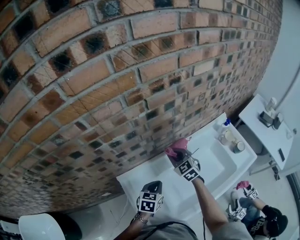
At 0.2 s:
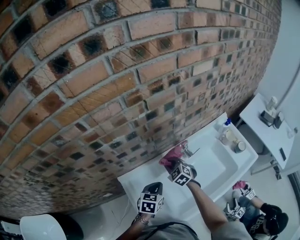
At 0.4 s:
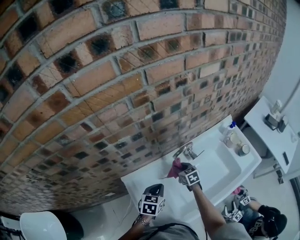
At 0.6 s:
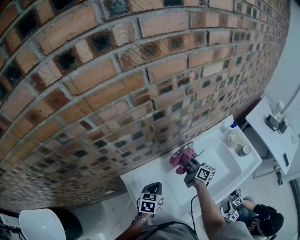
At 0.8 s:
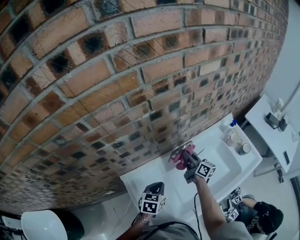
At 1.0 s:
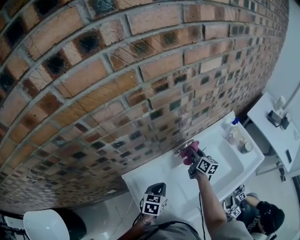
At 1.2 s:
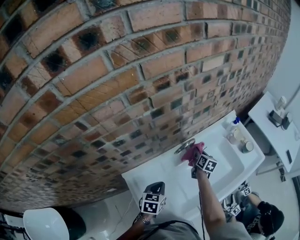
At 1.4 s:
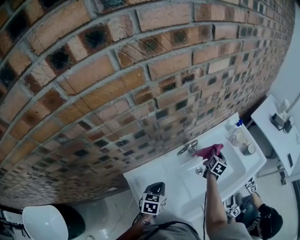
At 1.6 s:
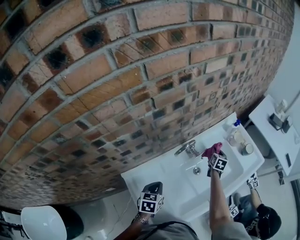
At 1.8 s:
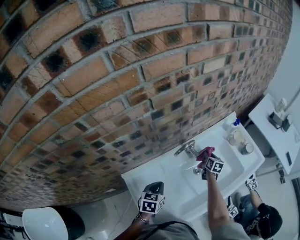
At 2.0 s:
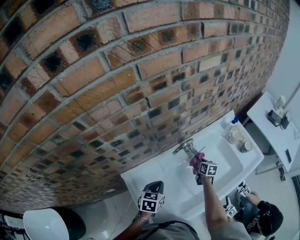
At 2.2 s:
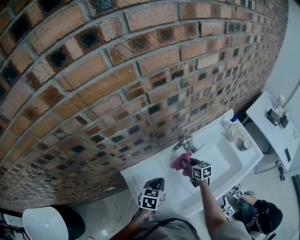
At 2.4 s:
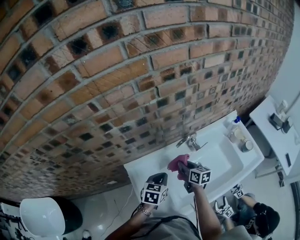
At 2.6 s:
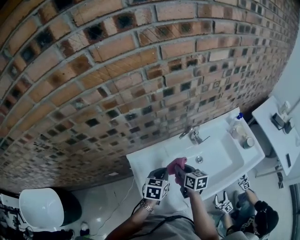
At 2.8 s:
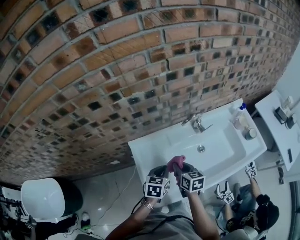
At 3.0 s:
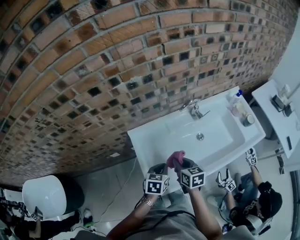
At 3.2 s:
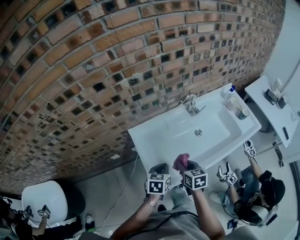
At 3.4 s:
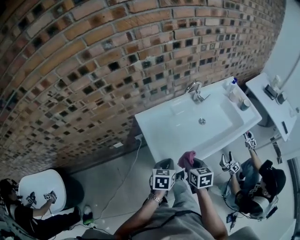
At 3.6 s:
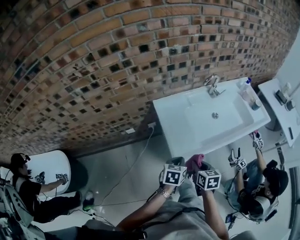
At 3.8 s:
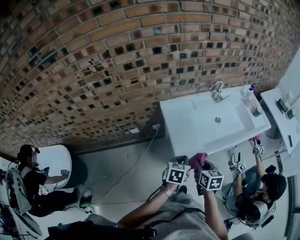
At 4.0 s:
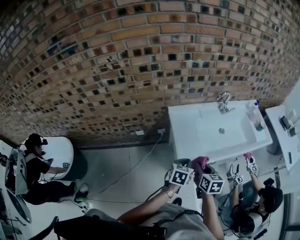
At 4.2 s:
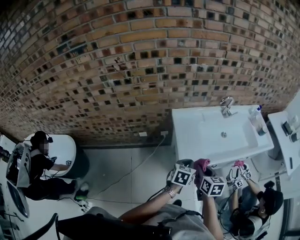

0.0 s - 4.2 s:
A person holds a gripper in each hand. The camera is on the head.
0.0 s - 1.4 s: The right gripper swings up and down, approximately 15 cm each way, with 2 reversals, and rotates roughly 70 degrees.
1.4 s - 2.8 s: The left gripper changes place by some 10 cm. The right gripper ends up roughly 35 cm from where it was, and changes its angle by about 50 degrees.
2.8 s - 4.2 s: The two grippers go roughly 30 cm backward.

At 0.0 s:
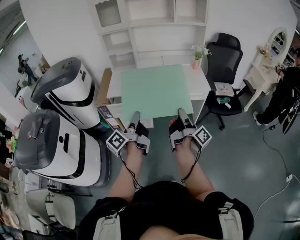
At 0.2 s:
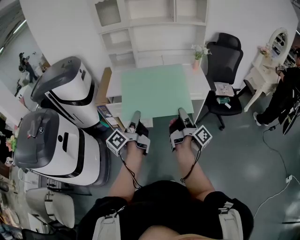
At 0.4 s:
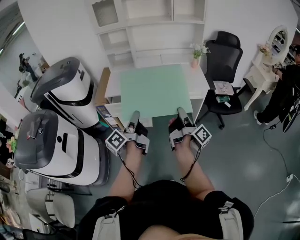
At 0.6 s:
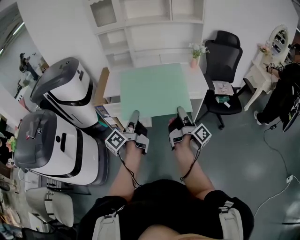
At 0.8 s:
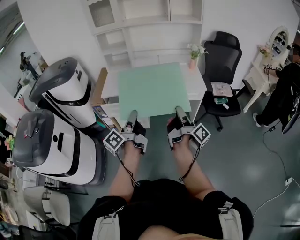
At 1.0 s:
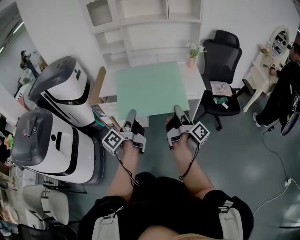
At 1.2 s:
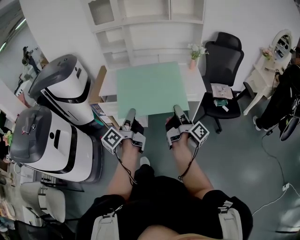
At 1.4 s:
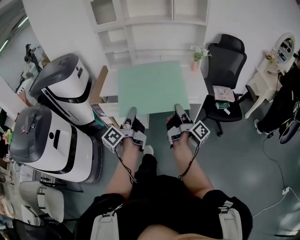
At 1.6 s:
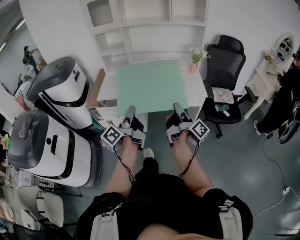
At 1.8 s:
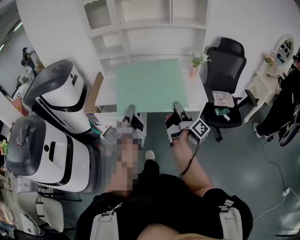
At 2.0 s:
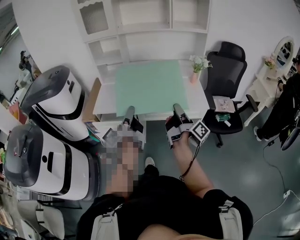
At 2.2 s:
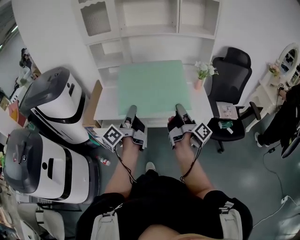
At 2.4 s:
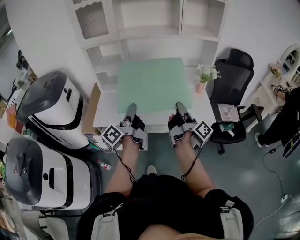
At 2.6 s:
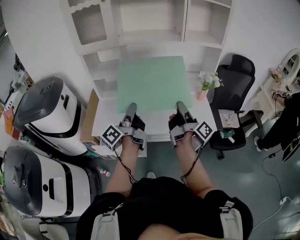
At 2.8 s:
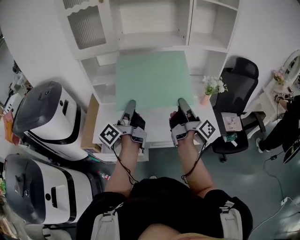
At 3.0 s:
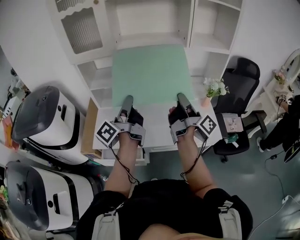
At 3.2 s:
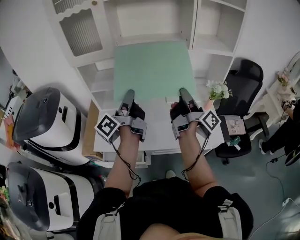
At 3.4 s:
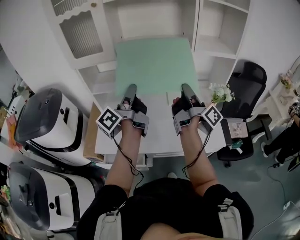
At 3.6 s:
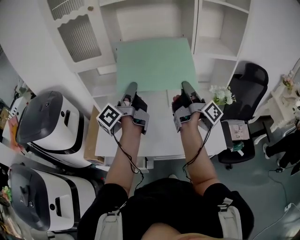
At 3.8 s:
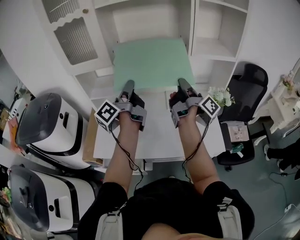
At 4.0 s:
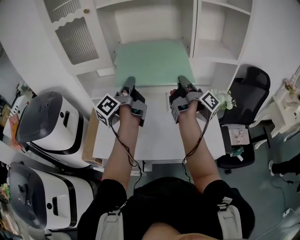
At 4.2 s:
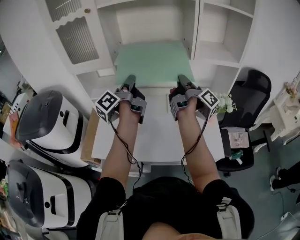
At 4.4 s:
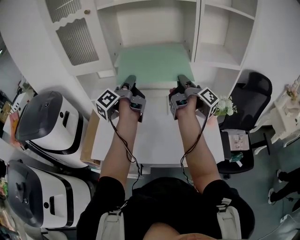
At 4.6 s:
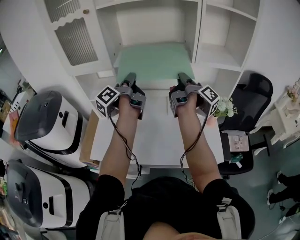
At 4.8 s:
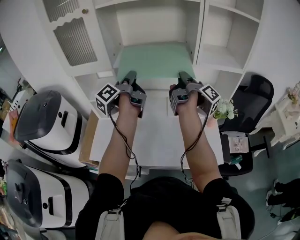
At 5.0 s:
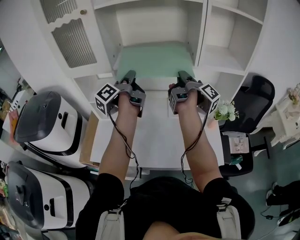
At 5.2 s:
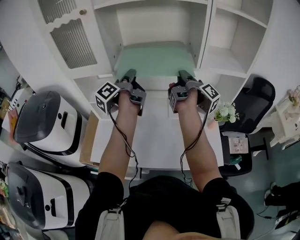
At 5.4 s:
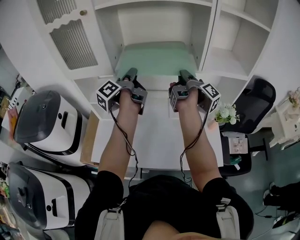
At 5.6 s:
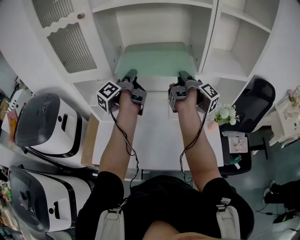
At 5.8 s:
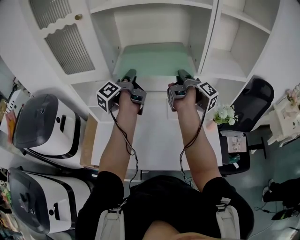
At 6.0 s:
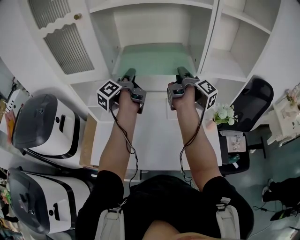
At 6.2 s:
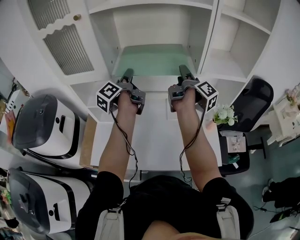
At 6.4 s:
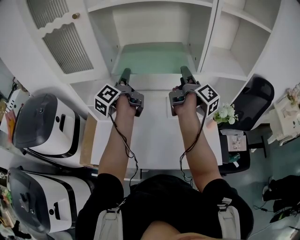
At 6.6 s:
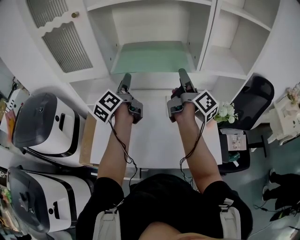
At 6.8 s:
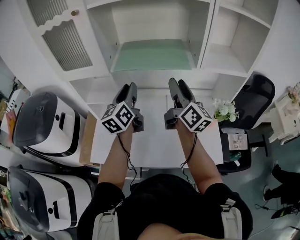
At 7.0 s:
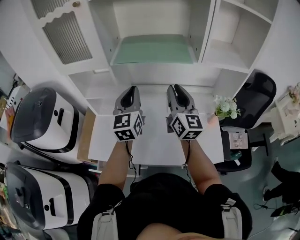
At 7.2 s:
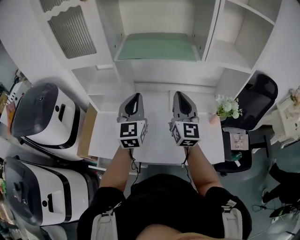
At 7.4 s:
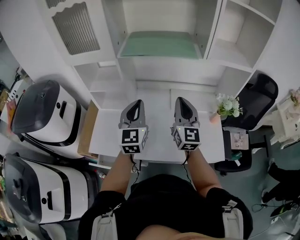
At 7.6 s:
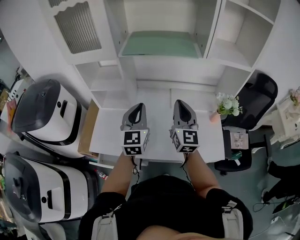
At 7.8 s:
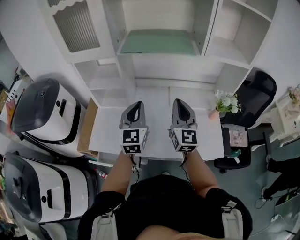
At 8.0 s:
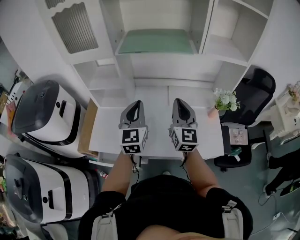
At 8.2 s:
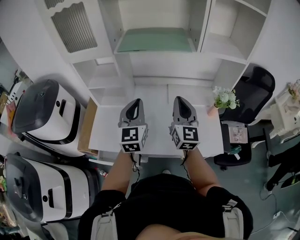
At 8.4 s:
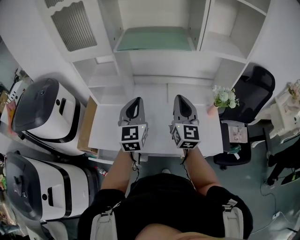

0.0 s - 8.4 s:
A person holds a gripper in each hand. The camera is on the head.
0.0 s - 1.4 s: The left gripper moves approximately 10 cm.
1.4 s - 2.8 s: The left gripper changes place by some 40 cm.
2.8 s - 4.2 s: The left gripper moves about 25 cm.
4.2 s - 5.6 s: The left gripper changes place by some 15 cm.
5.6 s - 7.0 s: The left gripper moves about 10 cm, twists roughly 80 degrees clockwise, seen from behind, and opens, then closes again.
7.0 s - 8.4 s: The left gripper changes place by roughly 10 cm.

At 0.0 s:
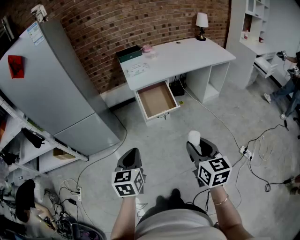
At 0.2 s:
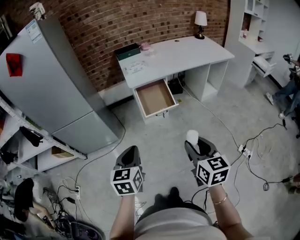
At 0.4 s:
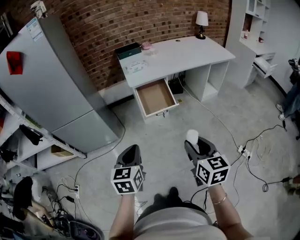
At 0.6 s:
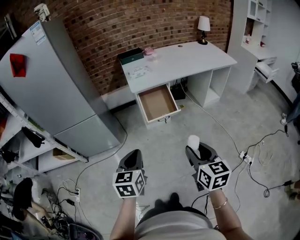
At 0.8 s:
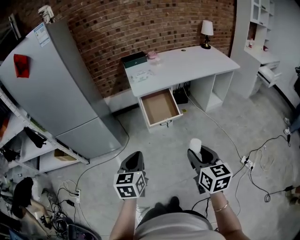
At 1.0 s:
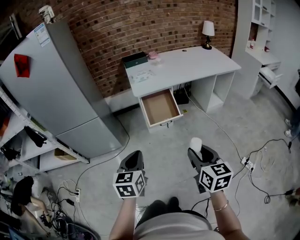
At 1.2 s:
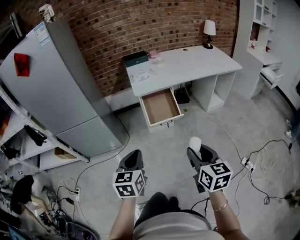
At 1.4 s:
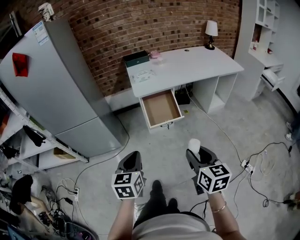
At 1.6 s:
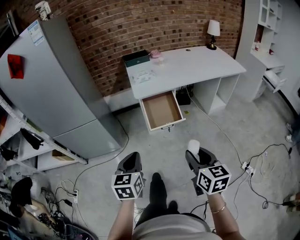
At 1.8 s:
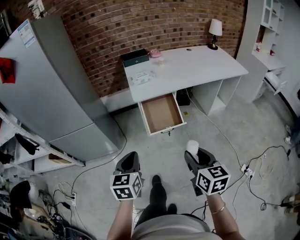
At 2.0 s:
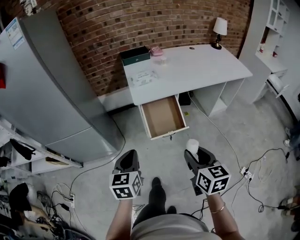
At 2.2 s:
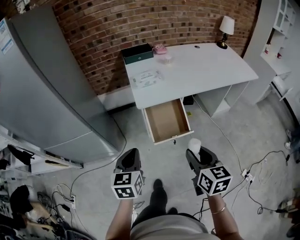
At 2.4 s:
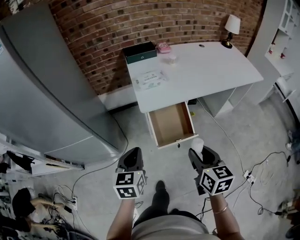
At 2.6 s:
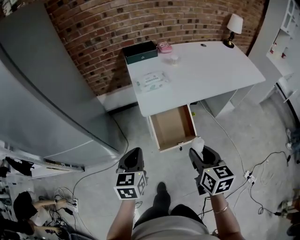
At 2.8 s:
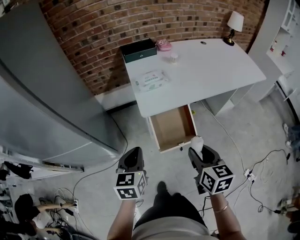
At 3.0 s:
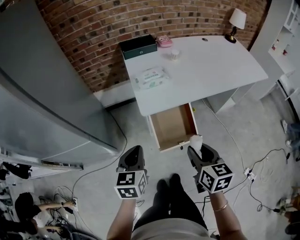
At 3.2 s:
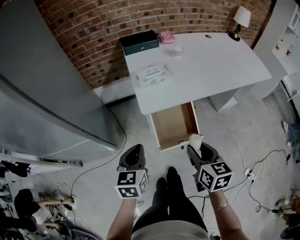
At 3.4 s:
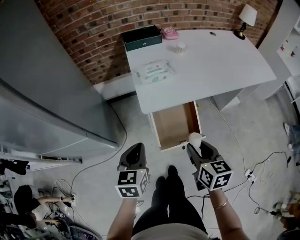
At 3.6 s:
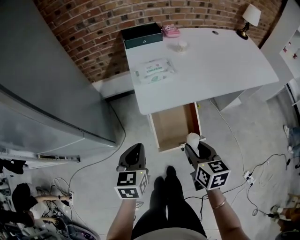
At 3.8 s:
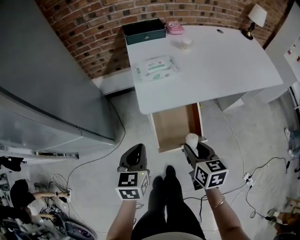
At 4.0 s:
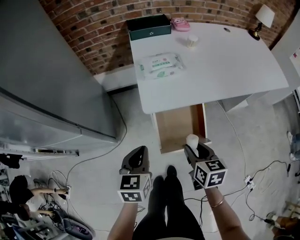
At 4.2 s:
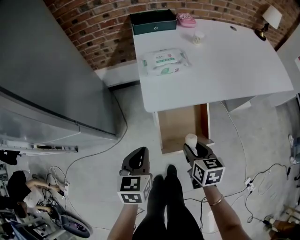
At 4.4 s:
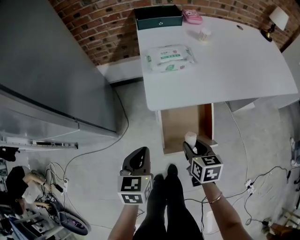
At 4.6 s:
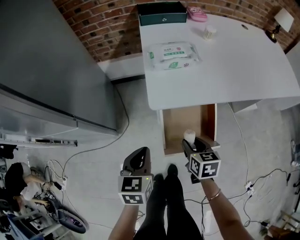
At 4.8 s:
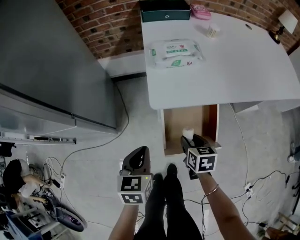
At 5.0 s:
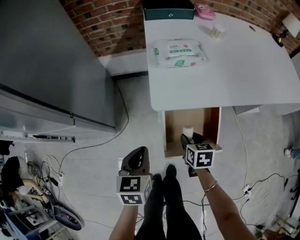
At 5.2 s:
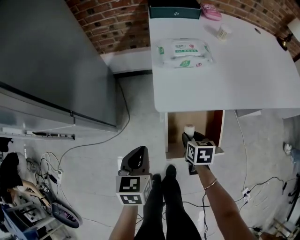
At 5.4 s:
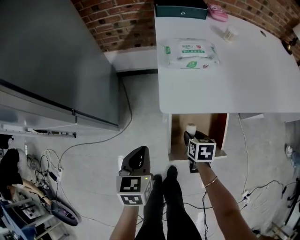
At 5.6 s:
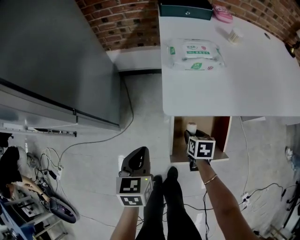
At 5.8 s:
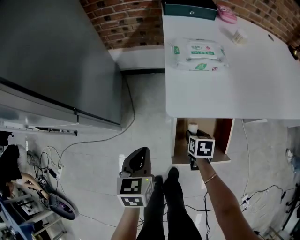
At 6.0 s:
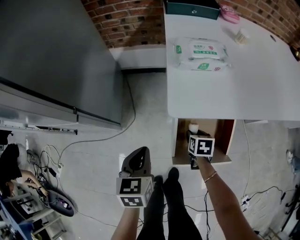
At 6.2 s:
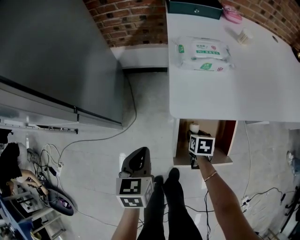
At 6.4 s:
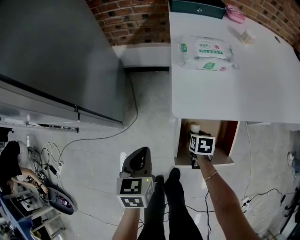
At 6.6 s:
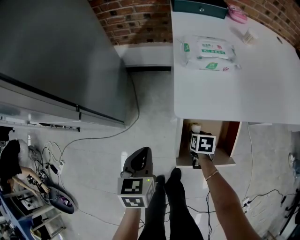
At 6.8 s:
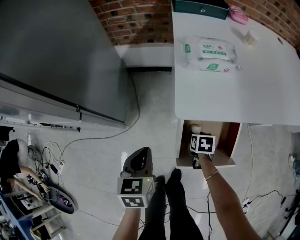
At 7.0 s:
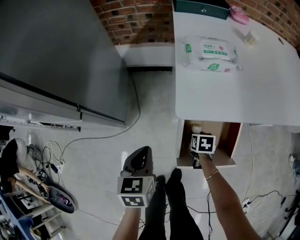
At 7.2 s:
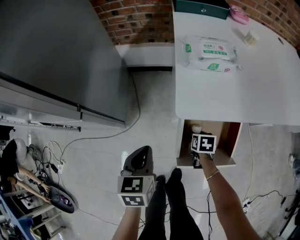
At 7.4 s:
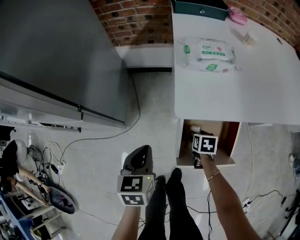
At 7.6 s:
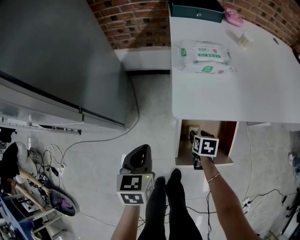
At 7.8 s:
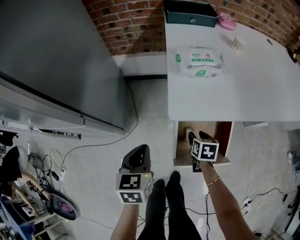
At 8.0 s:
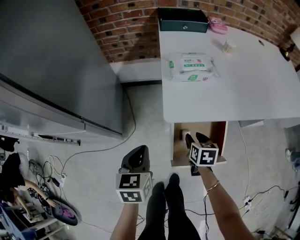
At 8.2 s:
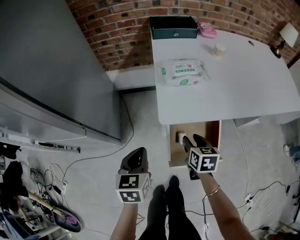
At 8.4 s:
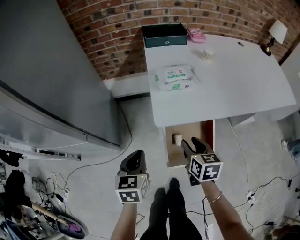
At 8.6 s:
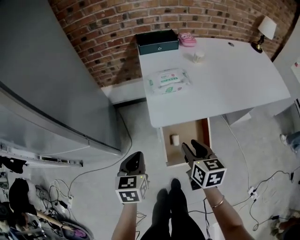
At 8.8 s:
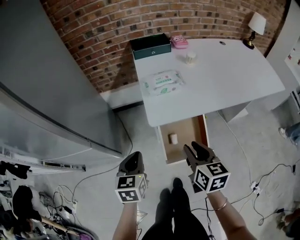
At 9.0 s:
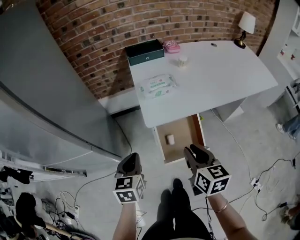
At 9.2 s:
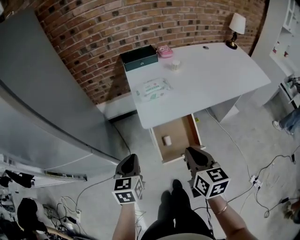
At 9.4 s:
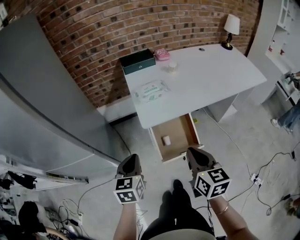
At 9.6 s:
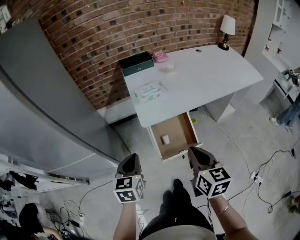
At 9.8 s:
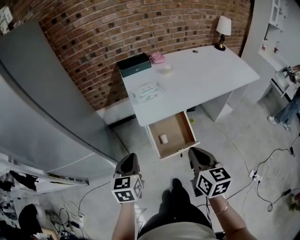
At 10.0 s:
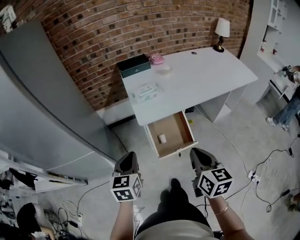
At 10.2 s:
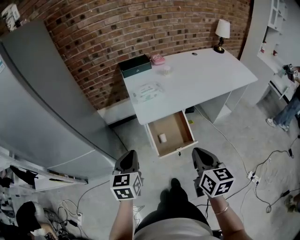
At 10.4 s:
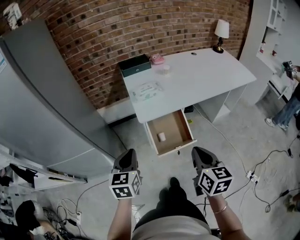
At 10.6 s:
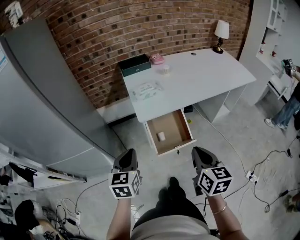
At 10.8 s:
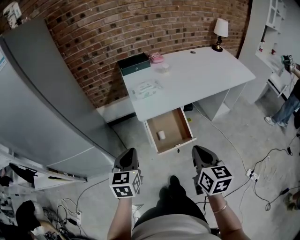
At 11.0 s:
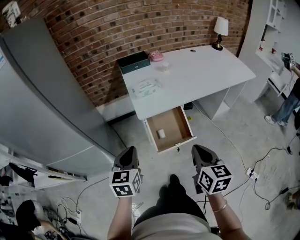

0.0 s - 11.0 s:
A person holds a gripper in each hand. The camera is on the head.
0.0 s - 1.6 s: The grippers both shift forward by approximately 10 cm.
1.6 s - 3.2 s: Both grippers move forward, roughly 40 cm.
3.2 s - 4.8 s: The left gripper travels downward by approximately 20 cm. Meanwhile the right gripper travels downward and forward by roughly 30 cm.
4.8 s - 6.2 s: The right gripper shifts roughly 15 cm downward and forward. Meanwhile the left gripper travels downward by roughly 5 cm.
6.2 s - 7.8 s: The right gripper moves upward, approximately 5 cm.
7.8 s - 9.4 s: The left gripper travels upward and backward by about 25 cm; the right gripper heads upward and backward, covering some 50 cm, tilts its fingers roughly 30 degrees upward, and closes.
9.4 s - 11.0 s: The right gripper heads backward, covering some 10 cm, while the left gripper is displaced backward and upward by roughly 10 cm.
